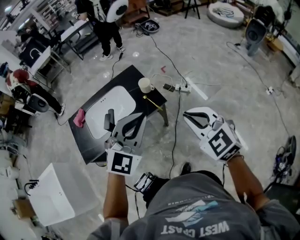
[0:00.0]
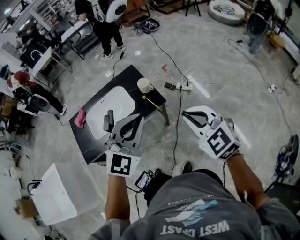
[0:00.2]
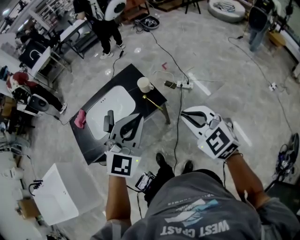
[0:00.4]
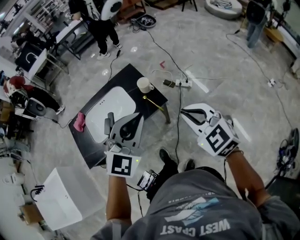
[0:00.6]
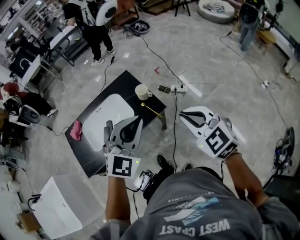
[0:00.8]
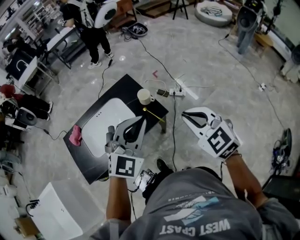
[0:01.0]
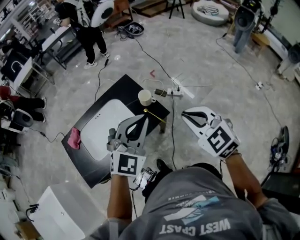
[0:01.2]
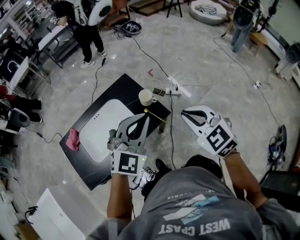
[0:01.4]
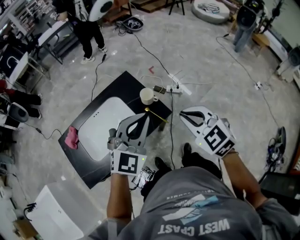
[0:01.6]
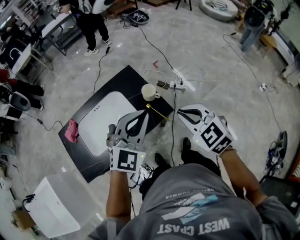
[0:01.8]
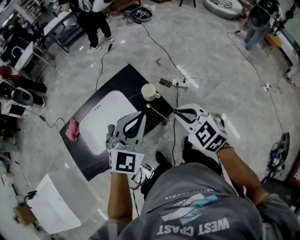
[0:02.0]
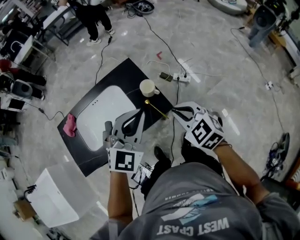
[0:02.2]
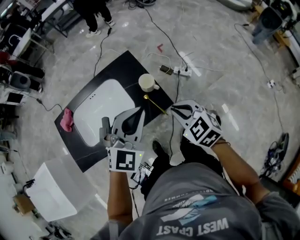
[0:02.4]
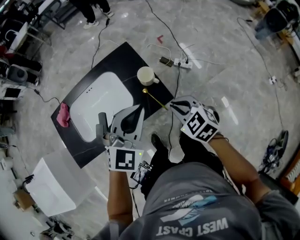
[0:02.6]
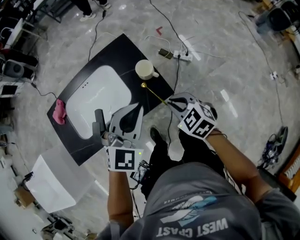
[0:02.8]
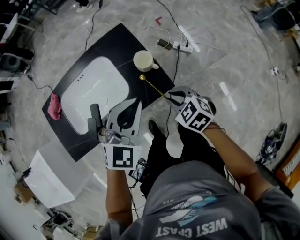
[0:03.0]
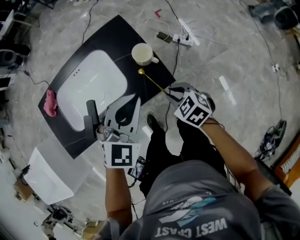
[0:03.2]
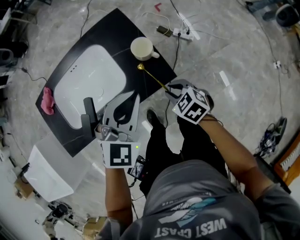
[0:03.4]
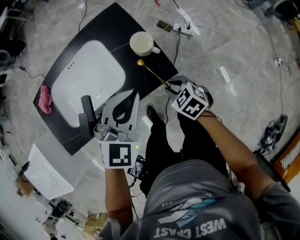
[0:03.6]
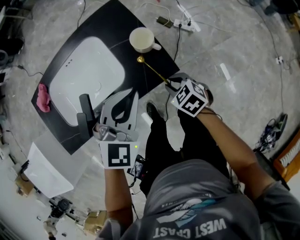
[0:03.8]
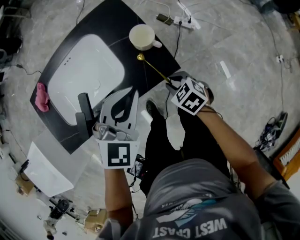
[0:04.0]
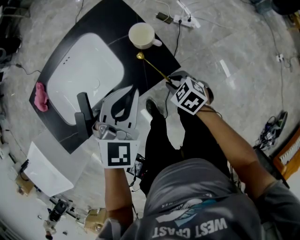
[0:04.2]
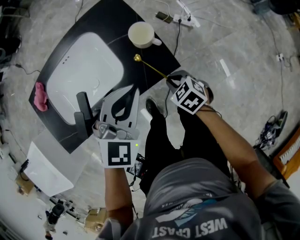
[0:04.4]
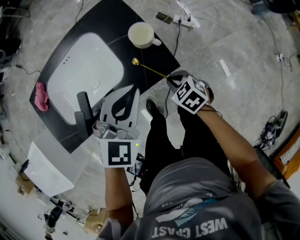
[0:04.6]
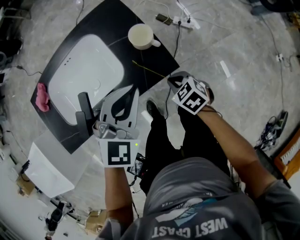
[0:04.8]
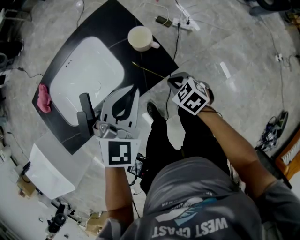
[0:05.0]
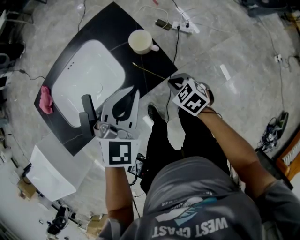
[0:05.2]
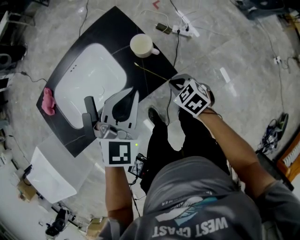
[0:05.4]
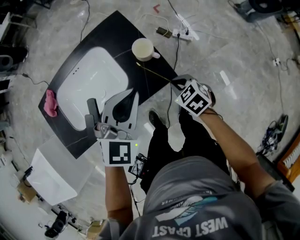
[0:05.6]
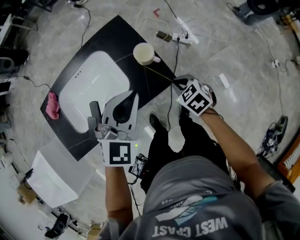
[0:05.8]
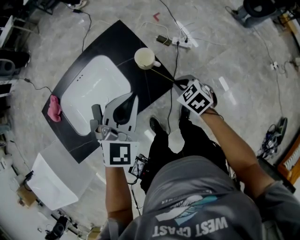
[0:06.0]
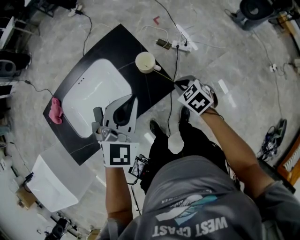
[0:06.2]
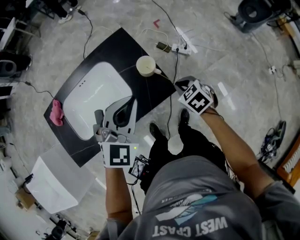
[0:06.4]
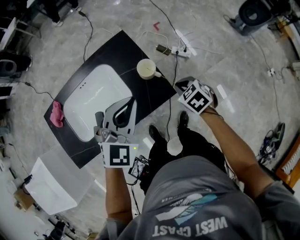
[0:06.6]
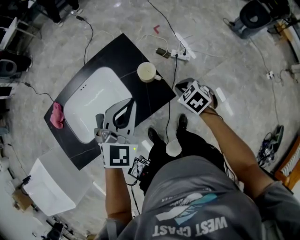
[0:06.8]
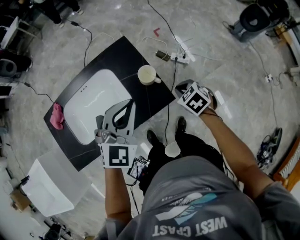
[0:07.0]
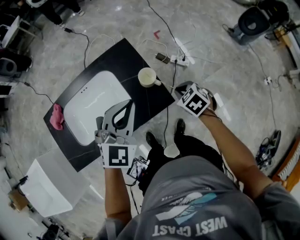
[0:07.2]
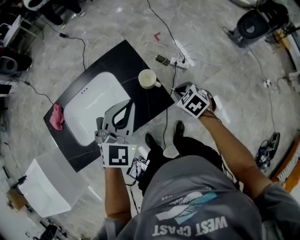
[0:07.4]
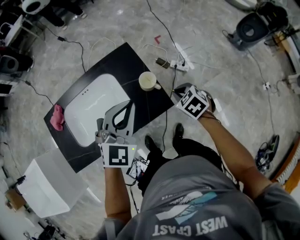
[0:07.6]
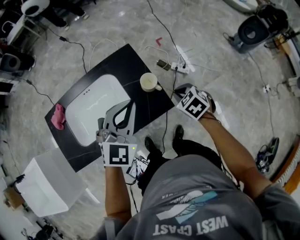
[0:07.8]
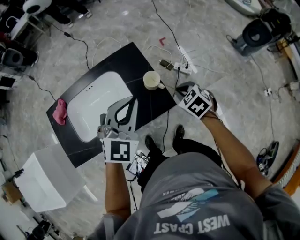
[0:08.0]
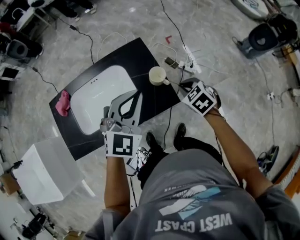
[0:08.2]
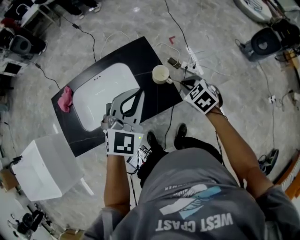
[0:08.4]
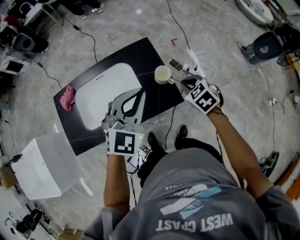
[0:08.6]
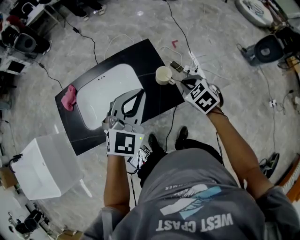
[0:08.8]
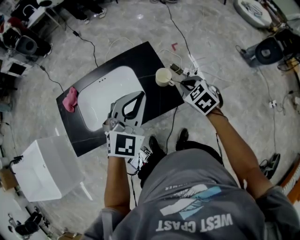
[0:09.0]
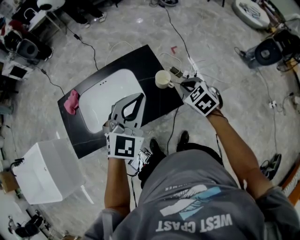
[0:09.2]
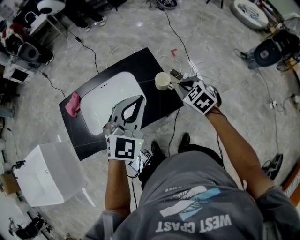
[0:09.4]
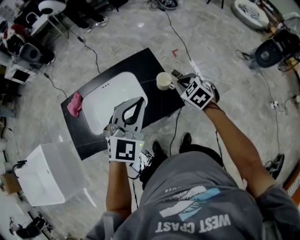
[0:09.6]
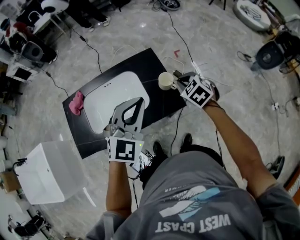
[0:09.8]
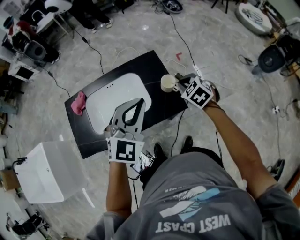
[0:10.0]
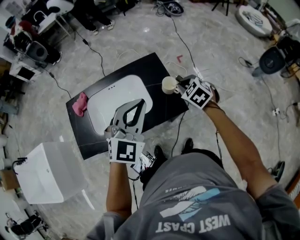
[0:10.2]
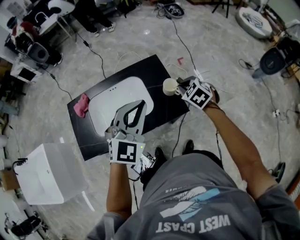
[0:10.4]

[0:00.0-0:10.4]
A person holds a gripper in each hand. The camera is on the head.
0:00.0 to 0:01.4: The two grippers go some 15 cm forward and to the left.
0:01.4 to 0:03.0: The left gripper moves downward and forward, about 15 cm. The right gripper goes some 25 cm downward, and swivels some 30 degrees.
0:03.0 to 0:04.4: The right gripper goes some 15 cm downward. Meanwhile the left gripper heads downward, covering some 5 cm.
0:04.4 to 0:06.0: The grippers both shift upward by some 10 cm.
0:06.0 to 0:07.4: The right gripper moves approximately 5 cm.
0:07.4 to 0:09.0: The left gripper heads upward, covering approximately 5 cm, while the right gripper is displaced upward by about 10 cm.
0:09.0 to 0:10.4: The left gripper ends up about 5 cm from where it was.

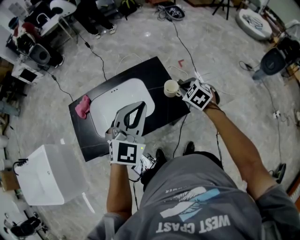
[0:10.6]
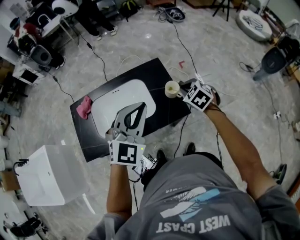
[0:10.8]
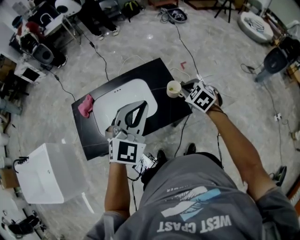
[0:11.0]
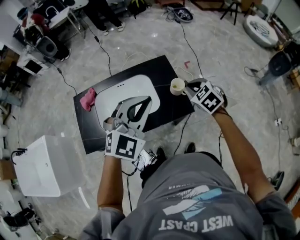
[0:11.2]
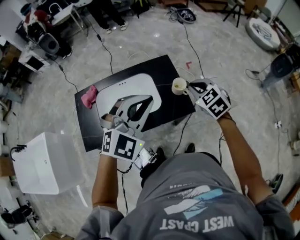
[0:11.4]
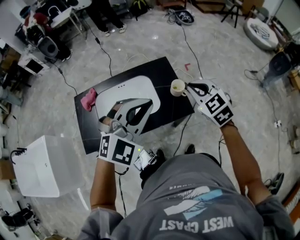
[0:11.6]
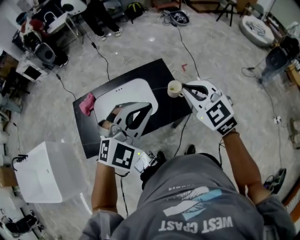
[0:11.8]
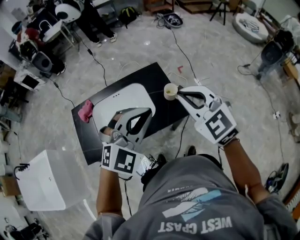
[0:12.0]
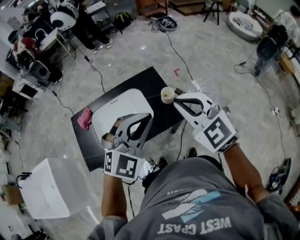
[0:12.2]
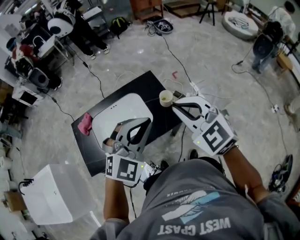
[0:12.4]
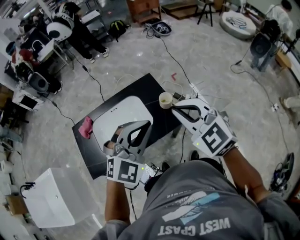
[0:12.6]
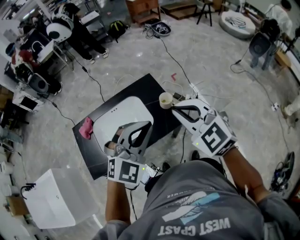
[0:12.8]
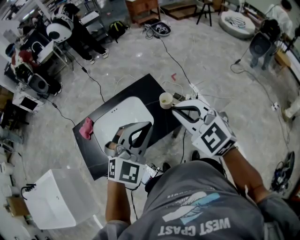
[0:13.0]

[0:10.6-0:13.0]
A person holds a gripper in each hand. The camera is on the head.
0:10.6 to 0:11.8: The left gripper ends up approximately 5 cm from where it was, while the right gripper moves upward and backward, some 20 cm, and changes its angle by approximately 30 degrees.
0:11.8 to 0:13.0: The right gripper moves backward, about 5 cm.

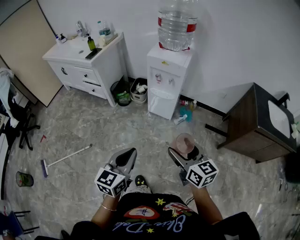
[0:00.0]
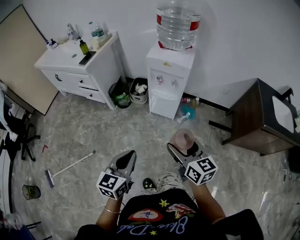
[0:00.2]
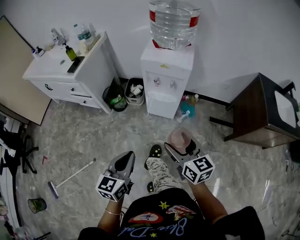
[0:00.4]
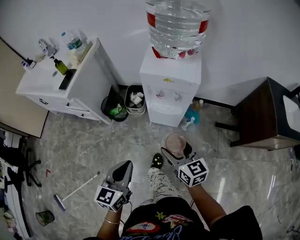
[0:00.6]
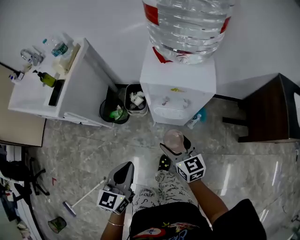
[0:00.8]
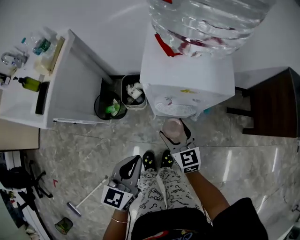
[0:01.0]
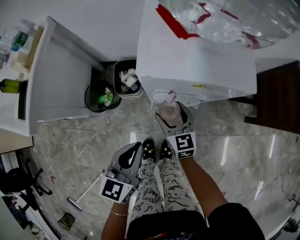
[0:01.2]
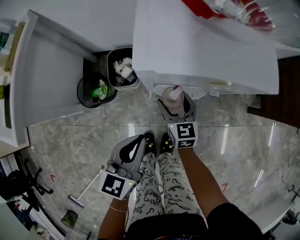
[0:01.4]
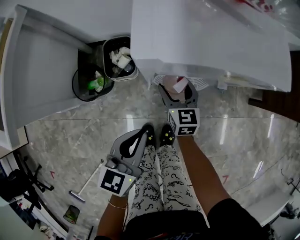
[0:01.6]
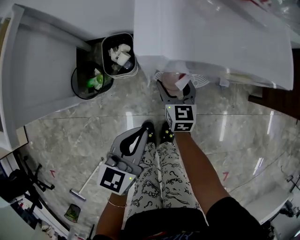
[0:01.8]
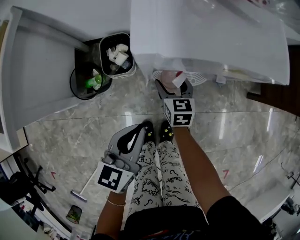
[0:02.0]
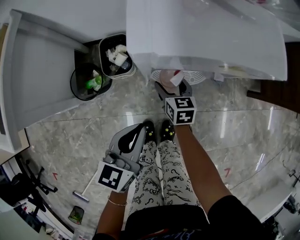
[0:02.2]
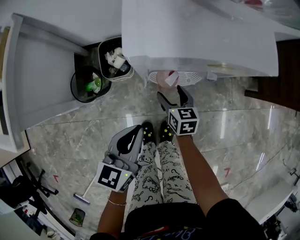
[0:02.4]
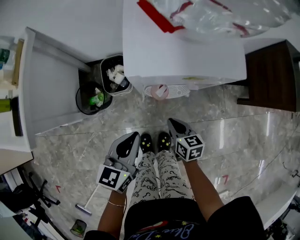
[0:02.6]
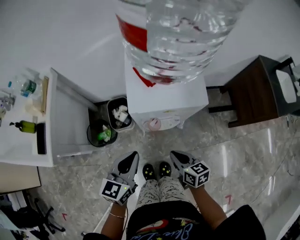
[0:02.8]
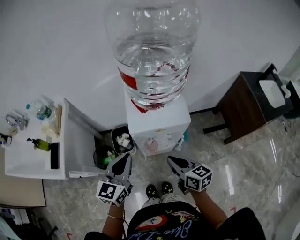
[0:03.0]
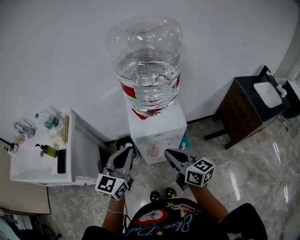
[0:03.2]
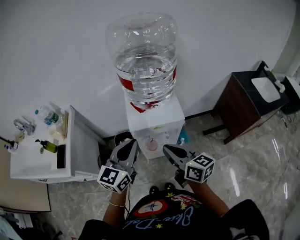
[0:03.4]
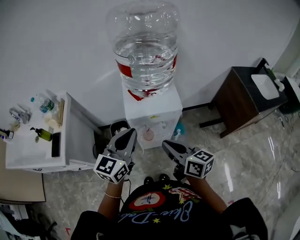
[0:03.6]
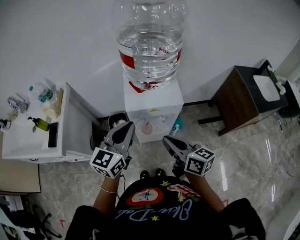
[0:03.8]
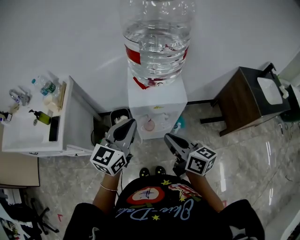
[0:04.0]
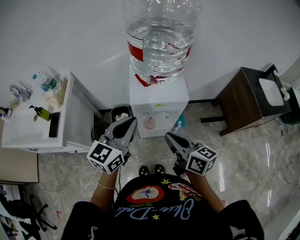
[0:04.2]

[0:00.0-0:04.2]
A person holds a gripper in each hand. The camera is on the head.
0:00.0 to 0:01.4: The two grippers travel together, roughly 60 cm. The right gripper swivels about 30 degrees, while the left gripper changes its angle by about 20 degrees.
0:01.4 to 0:02.8: The left gripper moves upward, roughly 15 cm, while the right gripper travels upward and backward by some 20 cm, rotates some 20 degrees, and closes up.
0:02.8 to 0:04.2: The grippers both shift upward by roughly 25 cm. The right gripper turns by approximately 20 degrees.

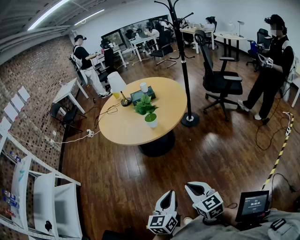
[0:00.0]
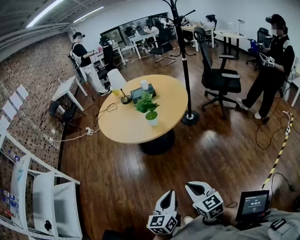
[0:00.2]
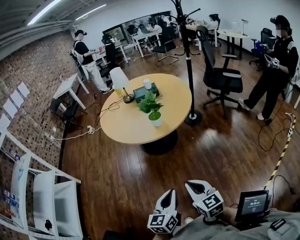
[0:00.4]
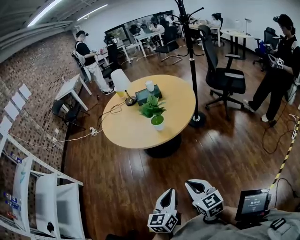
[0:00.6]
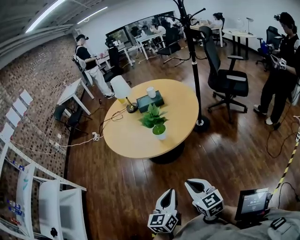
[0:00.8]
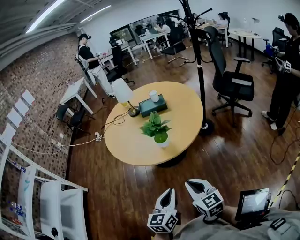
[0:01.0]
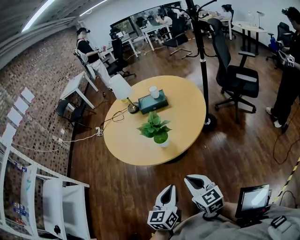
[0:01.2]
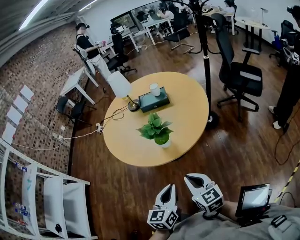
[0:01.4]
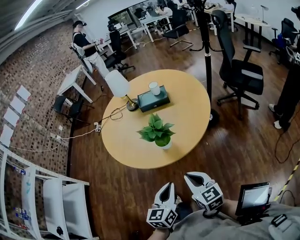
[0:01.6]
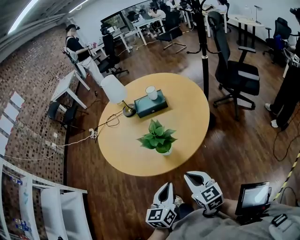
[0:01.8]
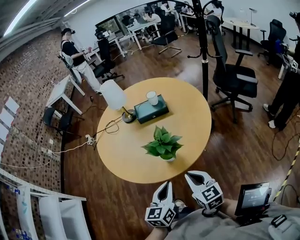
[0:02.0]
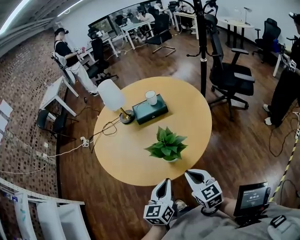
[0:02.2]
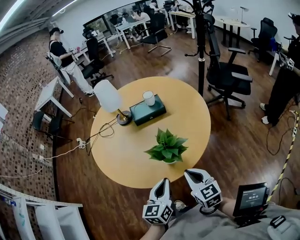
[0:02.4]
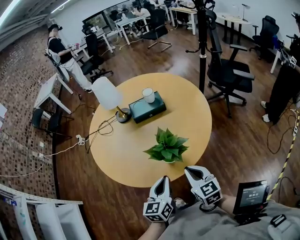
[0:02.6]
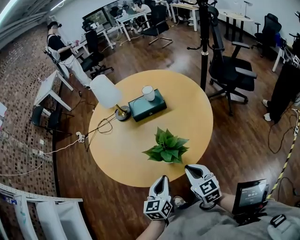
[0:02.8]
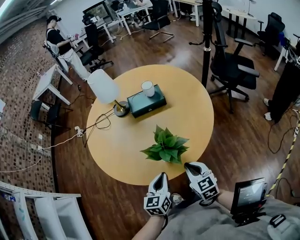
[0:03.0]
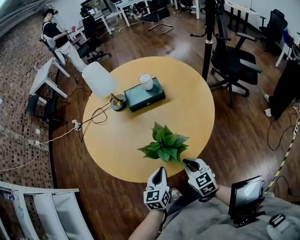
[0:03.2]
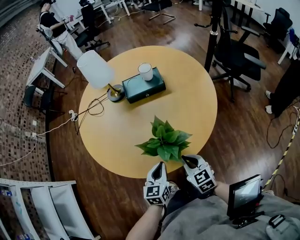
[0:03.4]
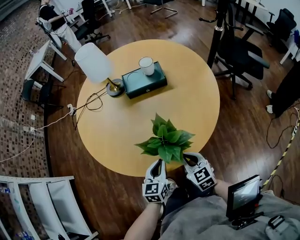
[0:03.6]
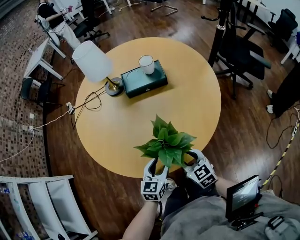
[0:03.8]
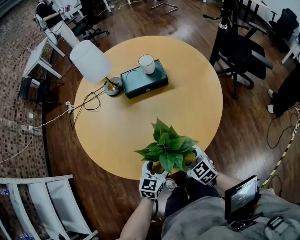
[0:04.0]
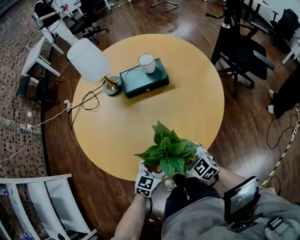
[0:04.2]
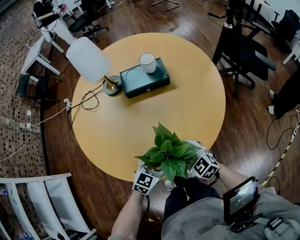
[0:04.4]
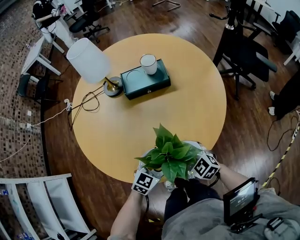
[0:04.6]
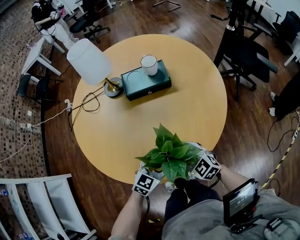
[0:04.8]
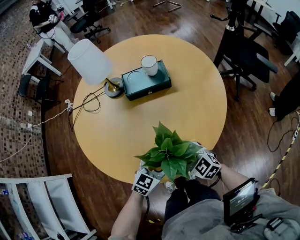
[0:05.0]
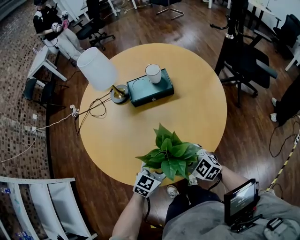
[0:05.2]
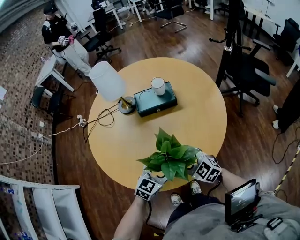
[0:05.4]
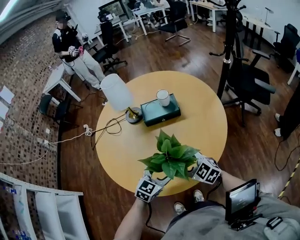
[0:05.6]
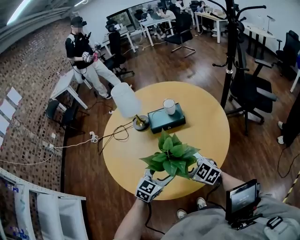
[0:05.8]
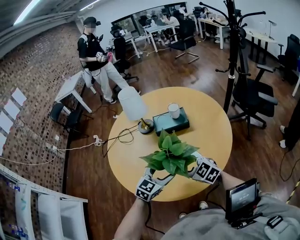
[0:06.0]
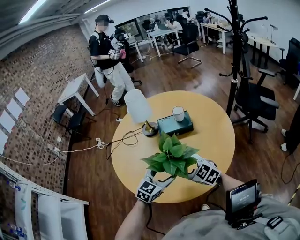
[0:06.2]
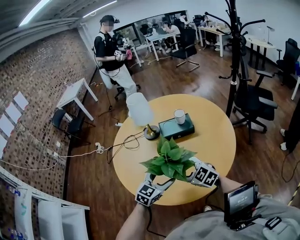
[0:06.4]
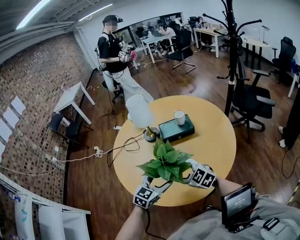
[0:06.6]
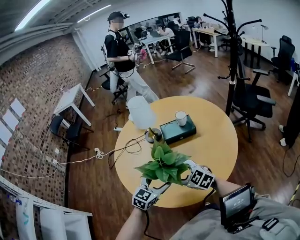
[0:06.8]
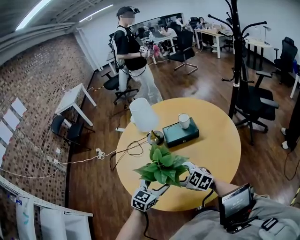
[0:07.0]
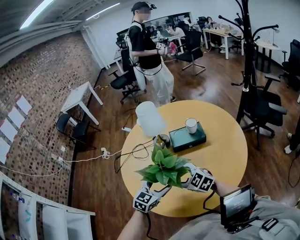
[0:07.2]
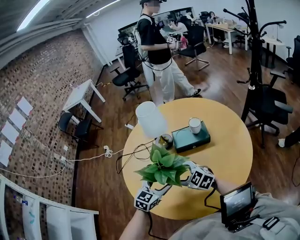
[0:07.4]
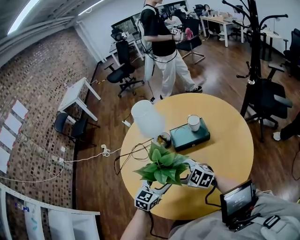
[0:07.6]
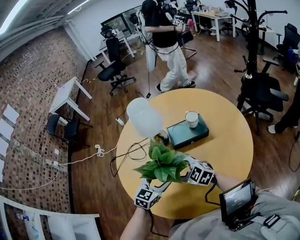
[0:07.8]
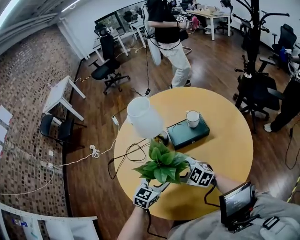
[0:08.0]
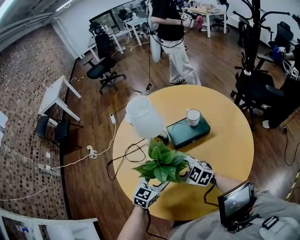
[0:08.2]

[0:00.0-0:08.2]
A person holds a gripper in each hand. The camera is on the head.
0:00.0 to 0:01.6: The grippers both shift forward by approximately 35 cm.
0:01.6 to 0:03.2: The right gripper is displaced forward and downward by about 20 cm; the left gripper heads forward, downward and to the left, covering about 25 cm.
0:03.2 to 0:05.0: Both grippers move forward and downward, about 10 cm. The right gripper changes its angle by roughly 30 degrees, and opens, while the left gripper changes its angle by approximately 40 degrees, and opens up.
0:05.0 to 0:06.6: The two grippers go about 20 cm upward and to the left.
0:06.6 to 0:08.2: The grippers both shift forward by about 20 cm.
